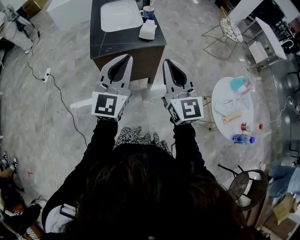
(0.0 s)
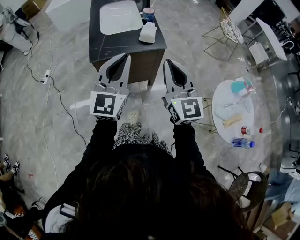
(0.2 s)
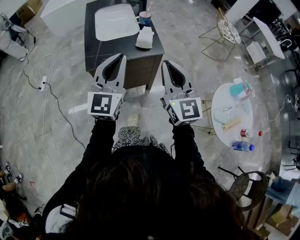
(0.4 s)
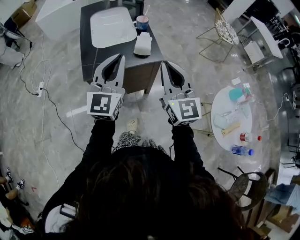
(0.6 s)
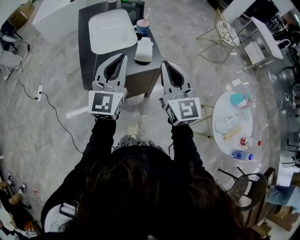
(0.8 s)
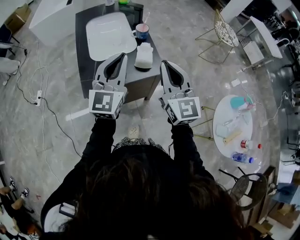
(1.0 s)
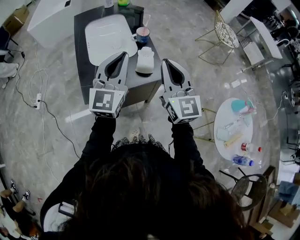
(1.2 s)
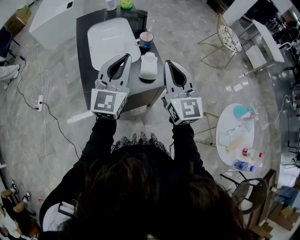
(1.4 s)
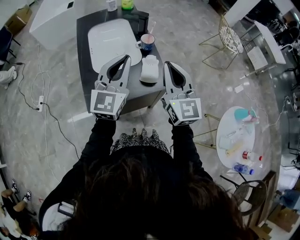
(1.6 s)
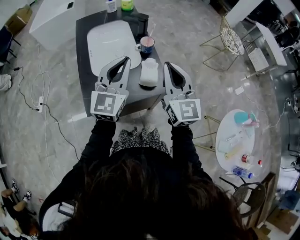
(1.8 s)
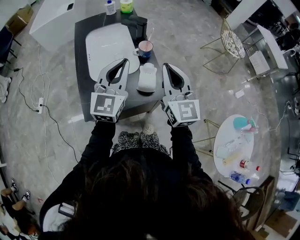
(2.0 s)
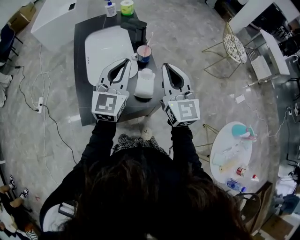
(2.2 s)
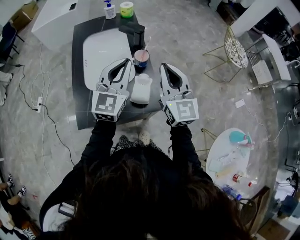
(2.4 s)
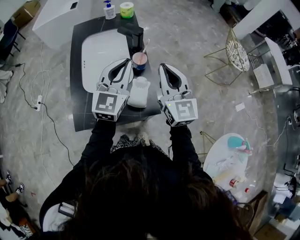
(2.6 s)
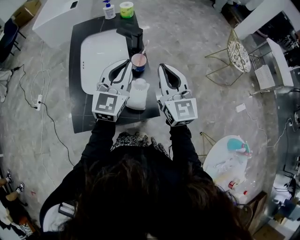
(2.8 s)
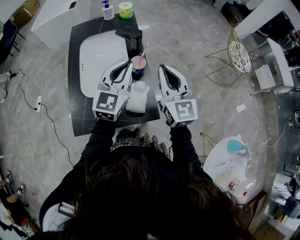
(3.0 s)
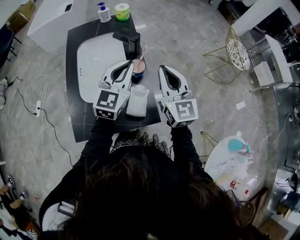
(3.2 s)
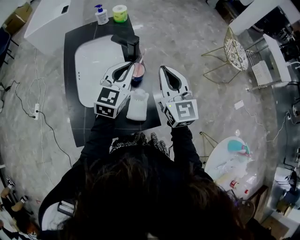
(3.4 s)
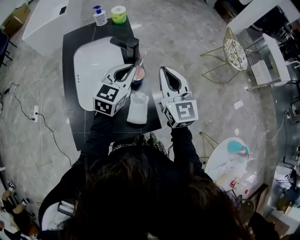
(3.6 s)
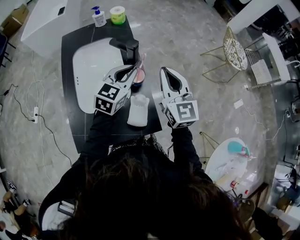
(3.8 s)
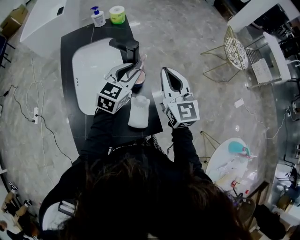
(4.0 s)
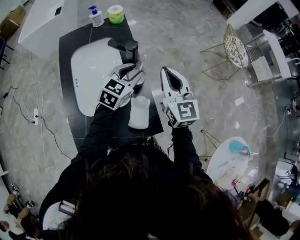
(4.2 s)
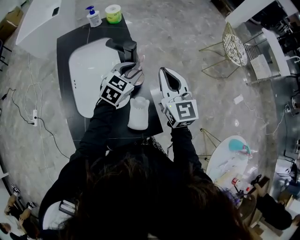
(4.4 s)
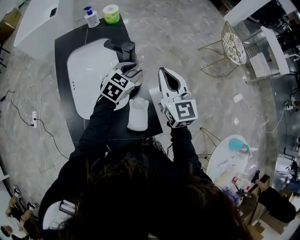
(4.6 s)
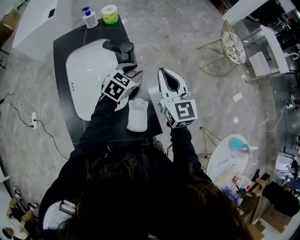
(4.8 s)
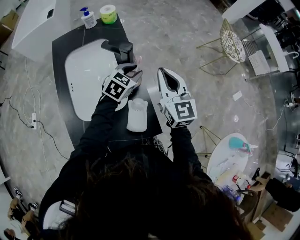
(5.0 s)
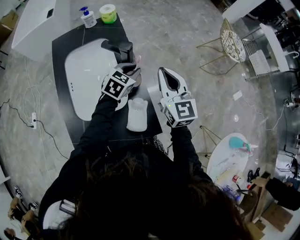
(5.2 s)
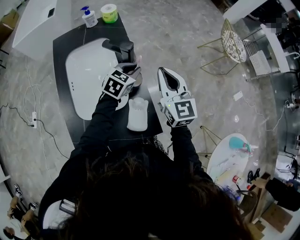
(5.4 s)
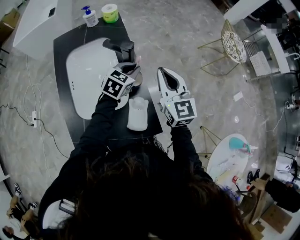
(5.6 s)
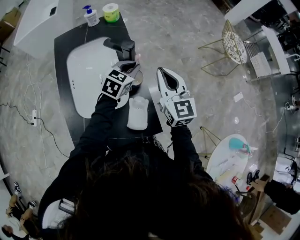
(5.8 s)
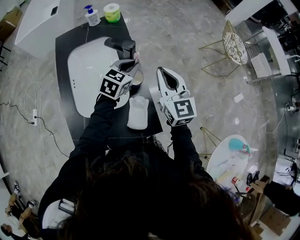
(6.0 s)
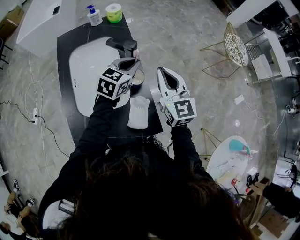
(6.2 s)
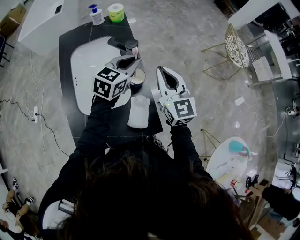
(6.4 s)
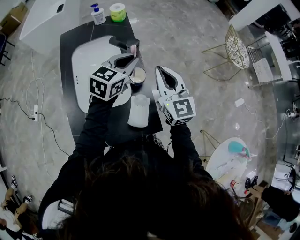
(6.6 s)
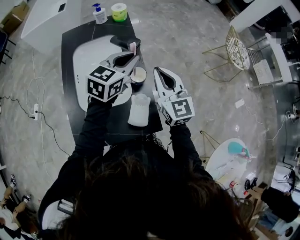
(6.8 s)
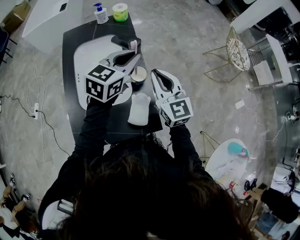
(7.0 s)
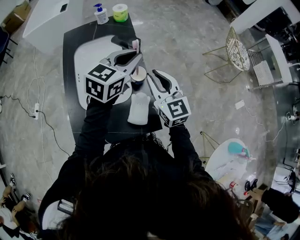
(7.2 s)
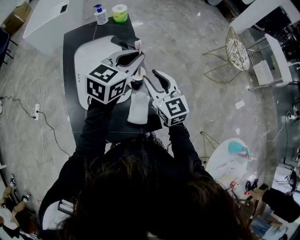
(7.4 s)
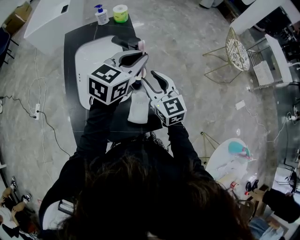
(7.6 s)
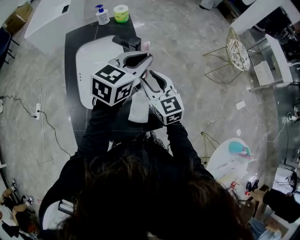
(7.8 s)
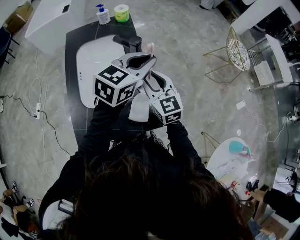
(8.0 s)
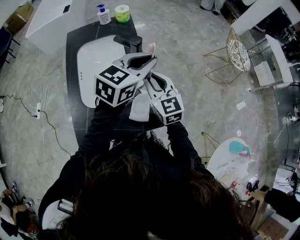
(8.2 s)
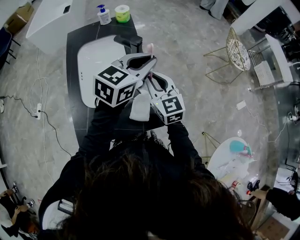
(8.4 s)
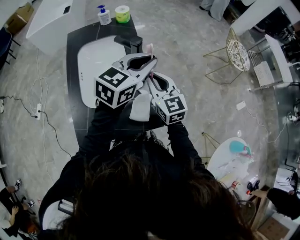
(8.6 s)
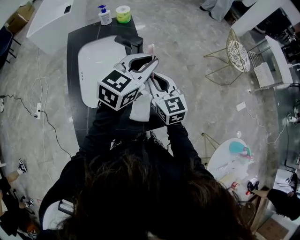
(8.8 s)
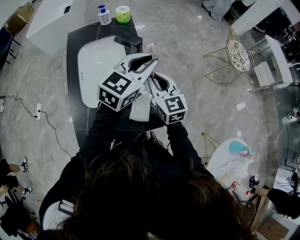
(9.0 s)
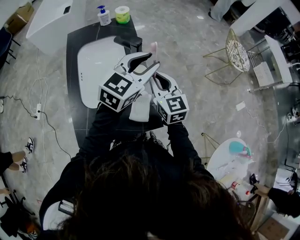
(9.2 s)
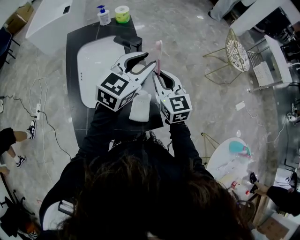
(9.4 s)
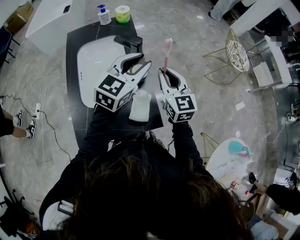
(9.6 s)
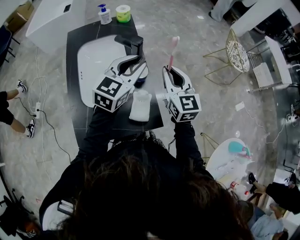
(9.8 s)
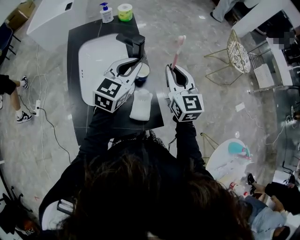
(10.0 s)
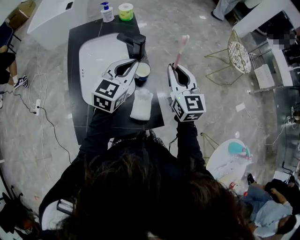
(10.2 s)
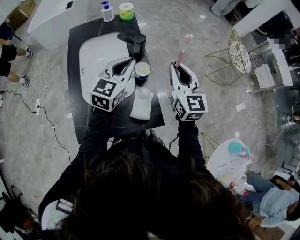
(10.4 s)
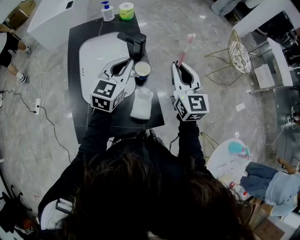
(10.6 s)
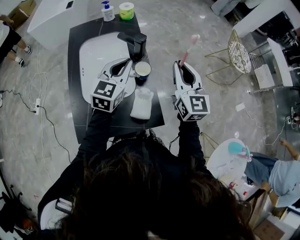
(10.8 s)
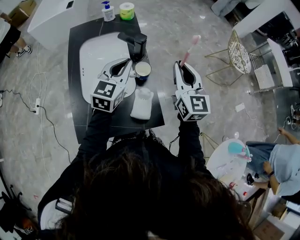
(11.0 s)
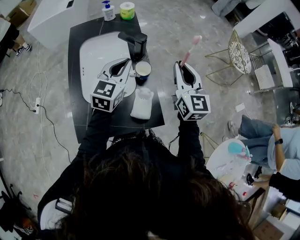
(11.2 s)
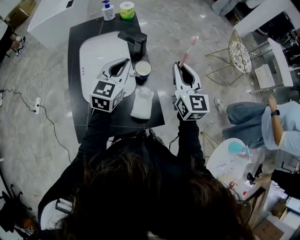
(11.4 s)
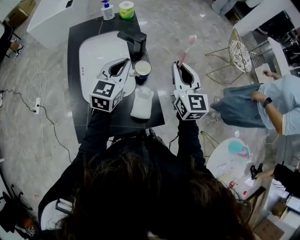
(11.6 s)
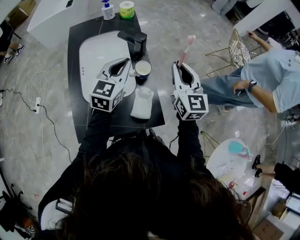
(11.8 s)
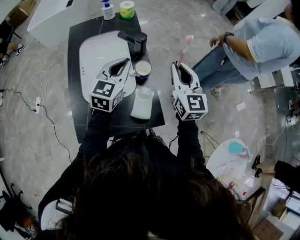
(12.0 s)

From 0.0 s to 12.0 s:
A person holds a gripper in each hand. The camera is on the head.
From 0.0 s to 1.6 s: The grippers both shift forward by about 30 cm.
From 1.6 s to 3.0 s: The left gripper goes about 15 cm forward and to the right, while the right gripper shifts approximately 15 cm forward.
From 3.0 s to 4.4 s: The right gripper heads forward, covering approximately 10 cm; the left gripper goes roughly 20 cm downward and forward, changes its angle by approximately 30 degrees, and opens up.
From 4.4 s to 6.0 s: The left gripper closes.
From 6.0 s to 7.6 s: The left gripper travels upward and backward by some 15 cm; the right gripper shifts by approximately 5 cm, and opens its fingers.
From 7.6 s to 9.0 s: The right gripper closes.
From 9.0 s to 10.4 s: The right gripper travels to the right and upward by approximately 10 cm, while the left gripper heads to the left and downward, covering some 10 cm, and opens and closes again.
From 10.4 s to 12.0 s: The grippers make only small movements.

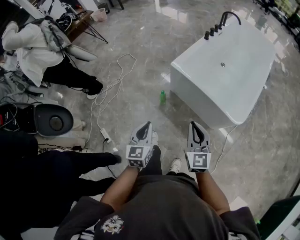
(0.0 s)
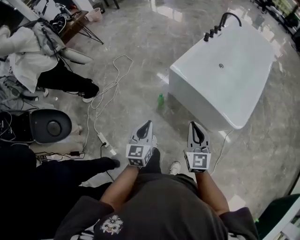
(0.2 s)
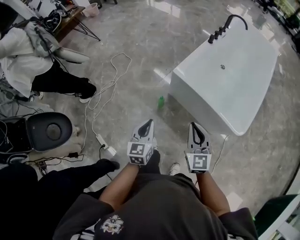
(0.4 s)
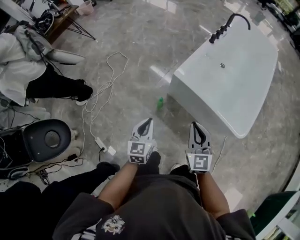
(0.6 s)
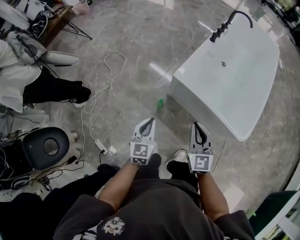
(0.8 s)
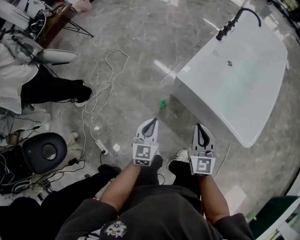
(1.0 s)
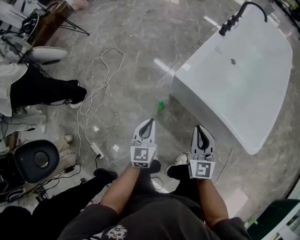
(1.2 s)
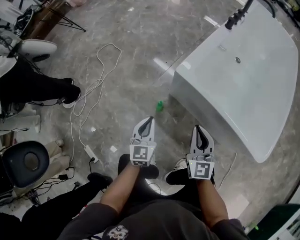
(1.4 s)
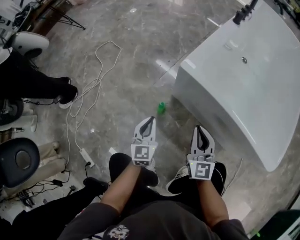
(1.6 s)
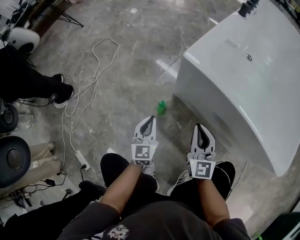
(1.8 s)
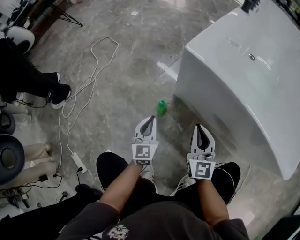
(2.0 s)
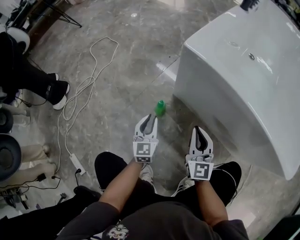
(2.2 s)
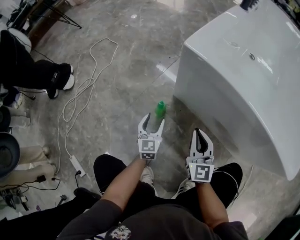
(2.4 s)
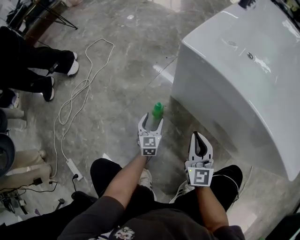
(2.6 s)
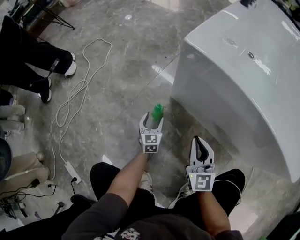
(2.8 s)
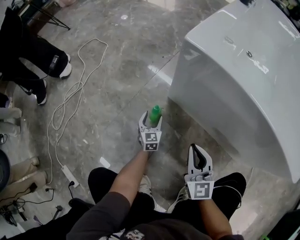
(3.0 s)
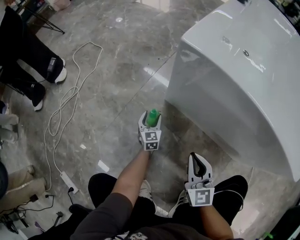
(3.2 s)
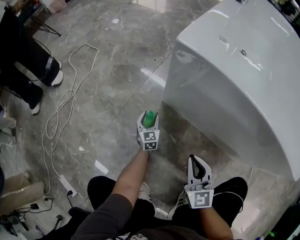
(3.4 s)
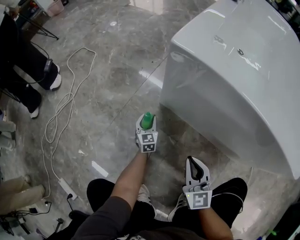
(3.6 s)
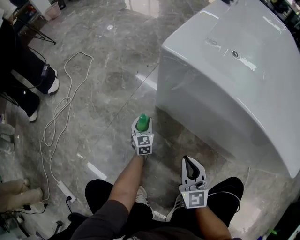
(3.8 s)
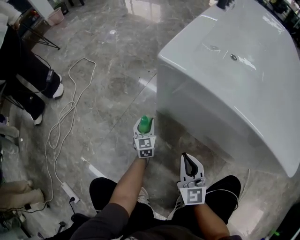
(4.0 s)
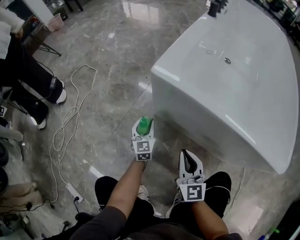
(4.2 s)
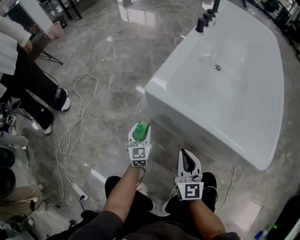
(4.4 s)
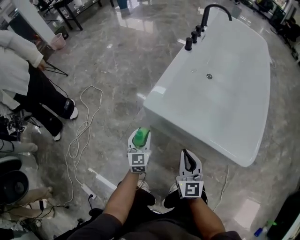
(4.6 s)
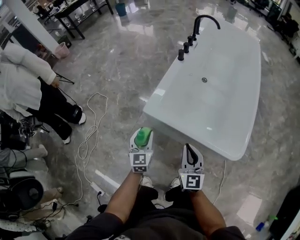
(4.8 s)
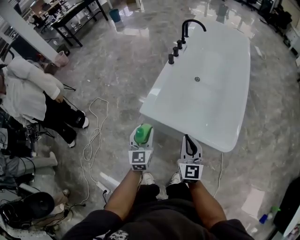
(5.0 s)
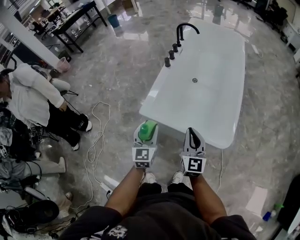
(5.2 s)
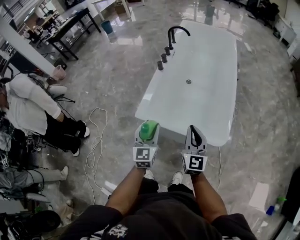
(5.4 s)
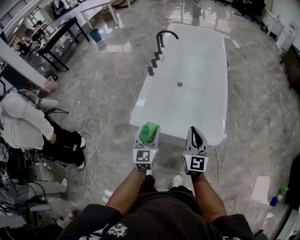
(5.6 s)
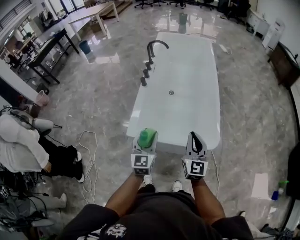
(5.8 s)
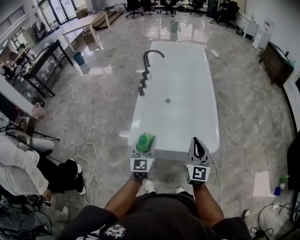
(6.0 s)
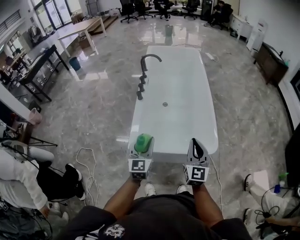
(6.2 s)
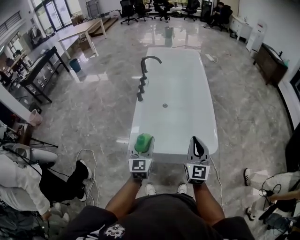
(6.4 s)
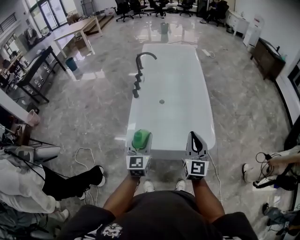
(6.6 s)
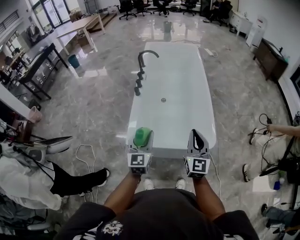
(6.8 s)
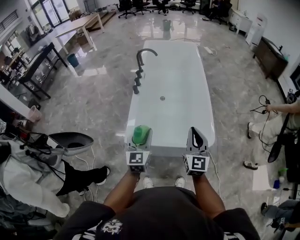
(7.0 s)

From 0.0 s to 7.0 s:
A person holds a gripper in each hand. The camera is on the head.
From 0.0 s to 1.4 s: The two grippers go some 40 cm downward and forward.
From 1.4 s to 2.8 s: Both grippers move downward, roughly 35 cm. The left gripper opens.
From 2.8 s to 4.2 s: The left gripper goes roughly 15 cm upward, forward and to the right, and closes. Meanwhile the right gripper is displaced upward by about 5 cm.
From 4.2 s to 5.6 s: The grippers both shift upward by about 60 cm. The right gripper swivels roughly 30 degrees. The left gripper swivels approximately 30 degrees.
From 5.6 s to 7.0 s: The grippers both shift upward by some 5 cm.

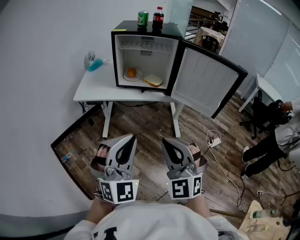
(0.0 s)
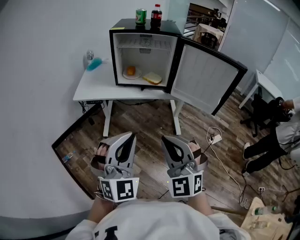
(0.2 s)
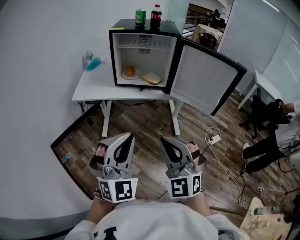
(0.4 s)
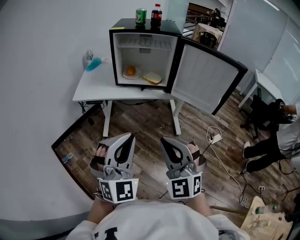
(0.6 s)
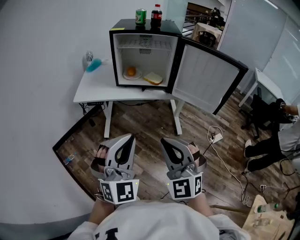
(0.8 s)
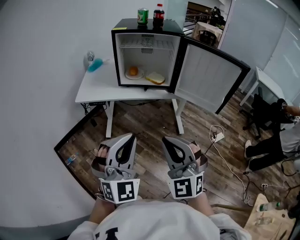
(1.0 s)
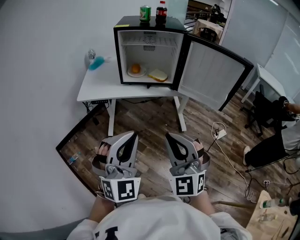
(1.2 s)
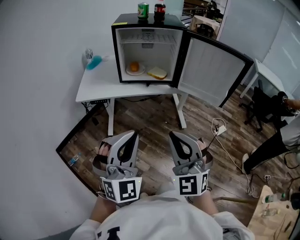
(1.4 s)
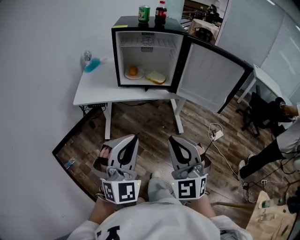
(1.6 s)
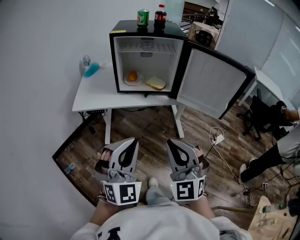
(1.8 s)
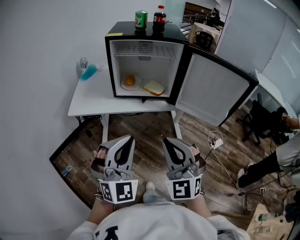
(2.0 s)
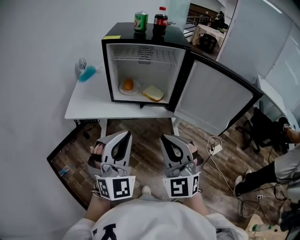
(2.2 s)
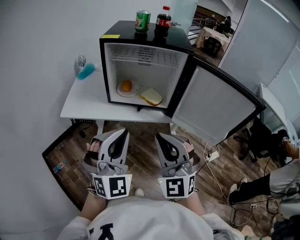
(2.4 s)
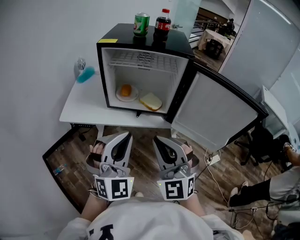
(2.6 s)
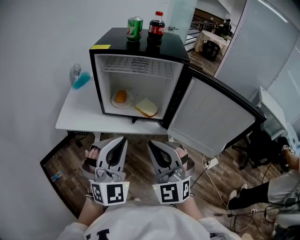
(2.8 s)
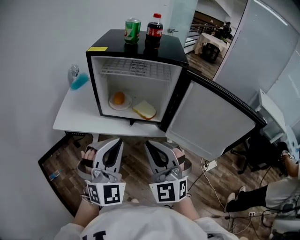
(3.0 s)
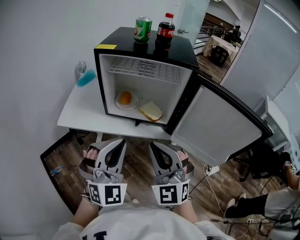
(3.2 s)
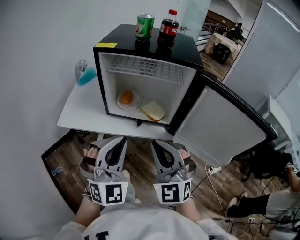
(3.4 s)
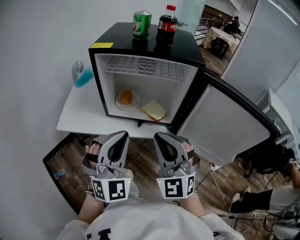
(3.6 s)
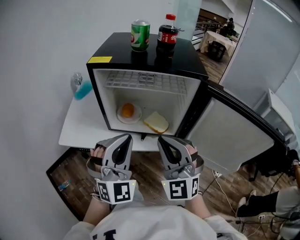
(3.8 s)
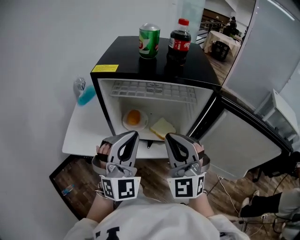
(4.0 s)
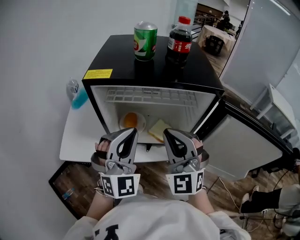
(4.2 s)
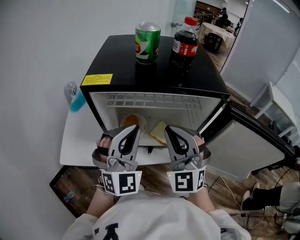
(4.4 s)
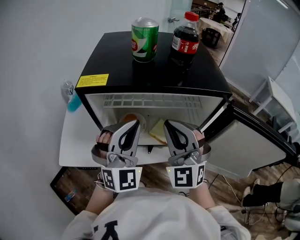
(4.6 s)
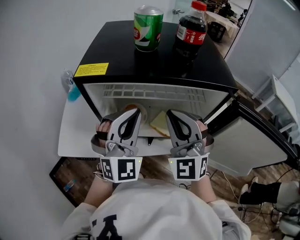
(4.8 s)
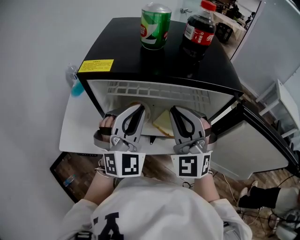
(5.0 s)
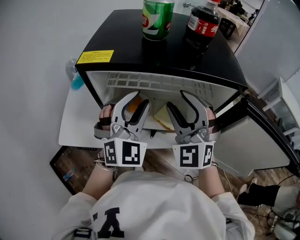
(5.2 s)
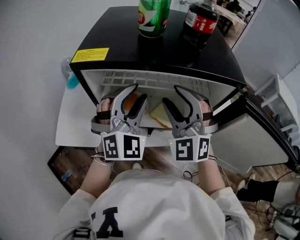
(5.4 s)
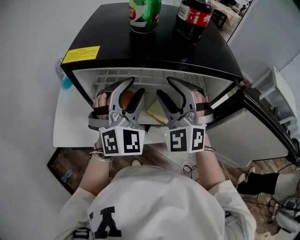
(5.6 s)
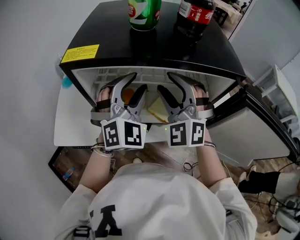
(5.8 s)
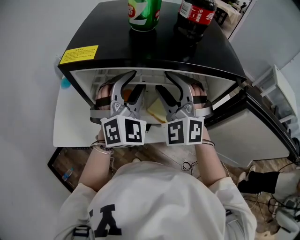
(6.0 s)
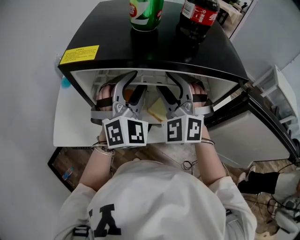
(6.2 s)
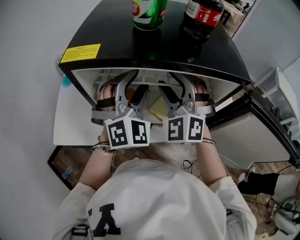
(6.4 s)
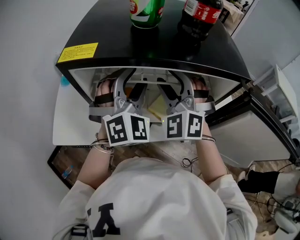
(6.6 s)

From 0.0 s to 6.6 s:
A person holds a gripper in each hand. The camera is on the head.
From 0.0 s to 1.6 s: The right gripper ends up approximately 5 cm from where it was. Meanwhile the left gripper heads to the left, covering some 5 cm.
From 1.6 s to 3.2 s: Both grippers travel together forward, approximately 25 cm.
From 3.2 s to 5.0 s: The grippers both shift forward by some 25 cm.
From 5.0 s to 6.6 s: The two grippers go roughly 10 cm forward. The left gripper opens up, while the right gripper opens up.
